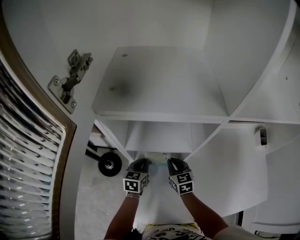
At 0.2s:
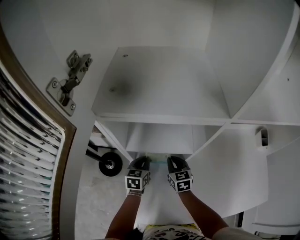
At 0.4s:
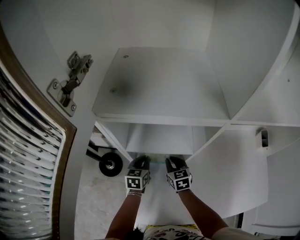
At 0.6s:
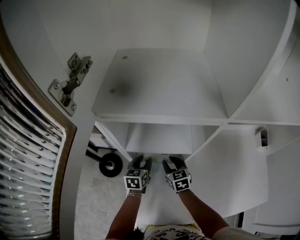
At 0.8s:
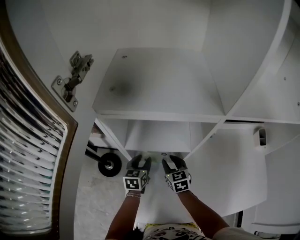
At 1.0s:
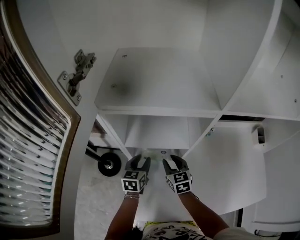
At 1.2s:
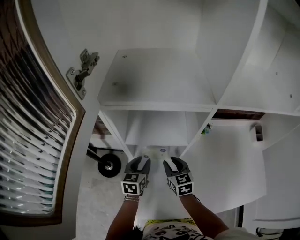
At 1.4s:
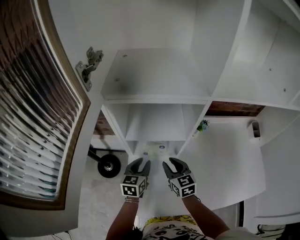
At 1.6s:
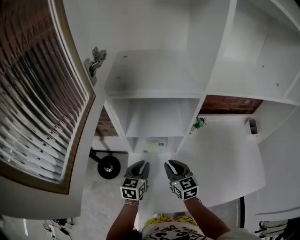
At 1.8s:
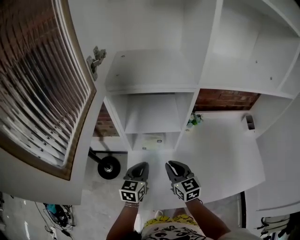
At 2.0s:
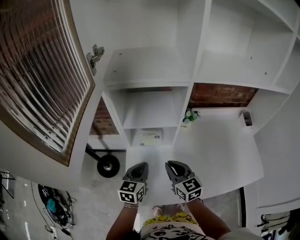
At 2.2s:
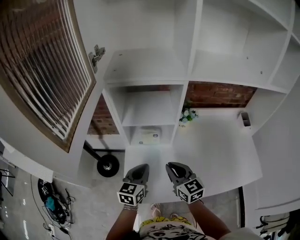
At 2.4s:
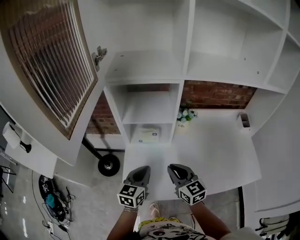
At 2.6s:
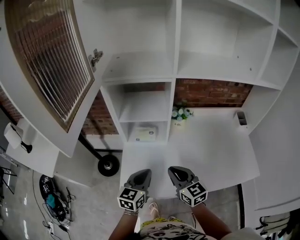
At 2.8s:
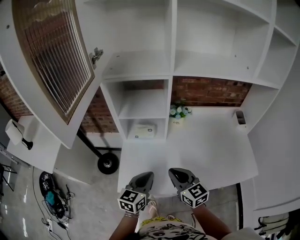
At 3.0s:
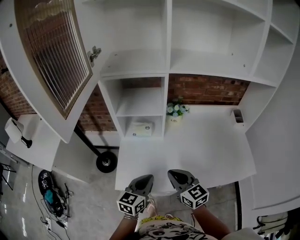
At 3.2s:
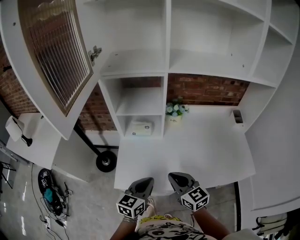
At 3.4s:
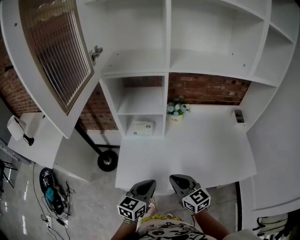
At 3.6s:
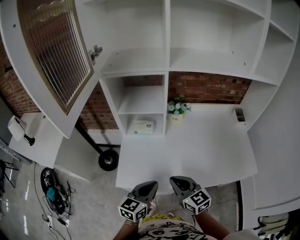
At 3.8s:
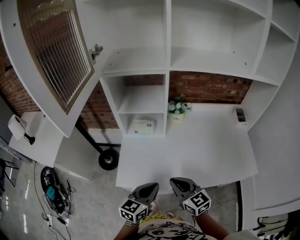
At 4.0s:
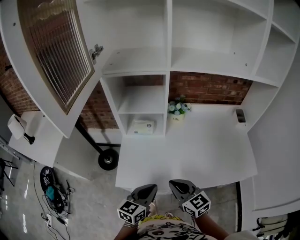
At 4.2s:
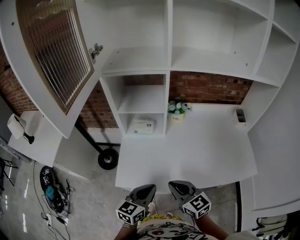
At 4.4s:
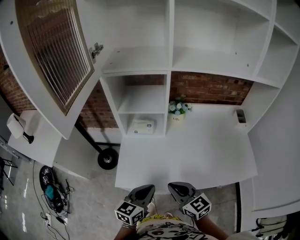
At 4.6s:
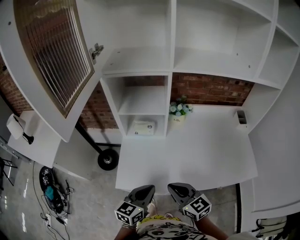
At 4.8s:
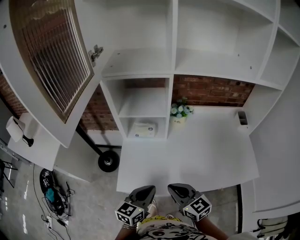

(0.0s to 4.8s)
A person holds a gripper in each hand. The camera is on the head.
0.0s - 1.6s: The two grippers go some 10 cm backward and upward. The left gripper opens and closes again.
1.6s - 3.2s: The right gripper moves backward, approximately 20 cm; the left gripper shifts roughly 25 cm backward and to the right.
3.2s - 4.8s: The grippers move only a little.

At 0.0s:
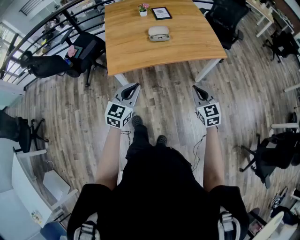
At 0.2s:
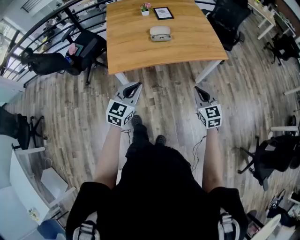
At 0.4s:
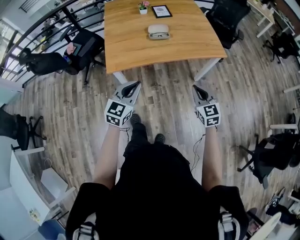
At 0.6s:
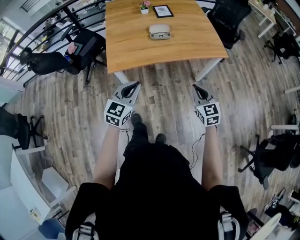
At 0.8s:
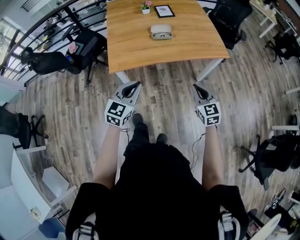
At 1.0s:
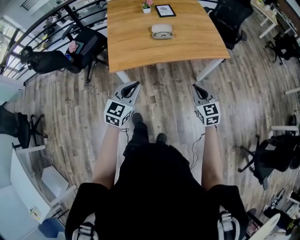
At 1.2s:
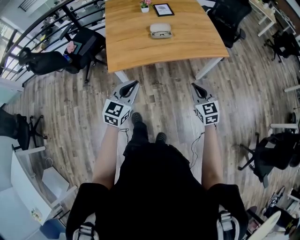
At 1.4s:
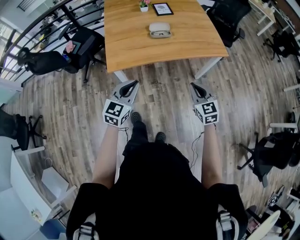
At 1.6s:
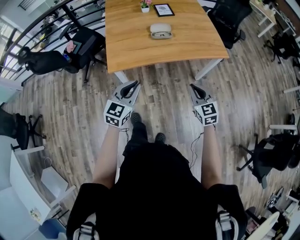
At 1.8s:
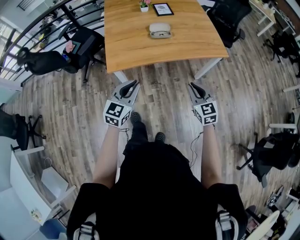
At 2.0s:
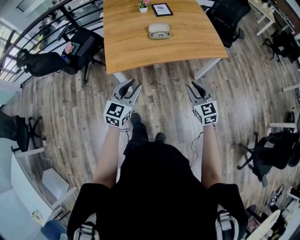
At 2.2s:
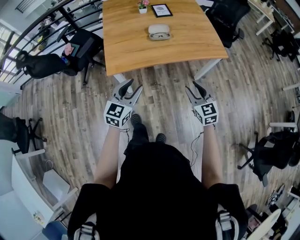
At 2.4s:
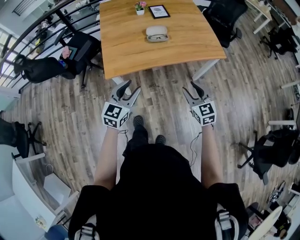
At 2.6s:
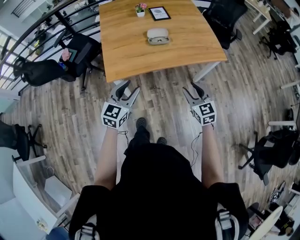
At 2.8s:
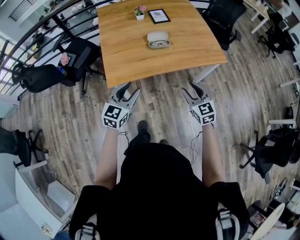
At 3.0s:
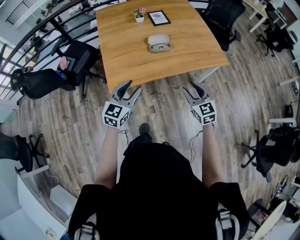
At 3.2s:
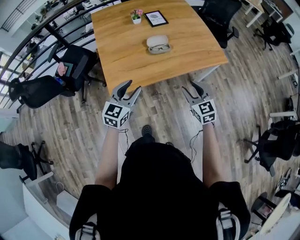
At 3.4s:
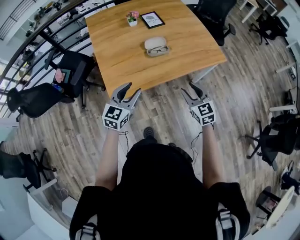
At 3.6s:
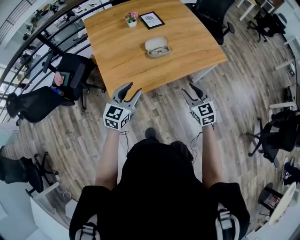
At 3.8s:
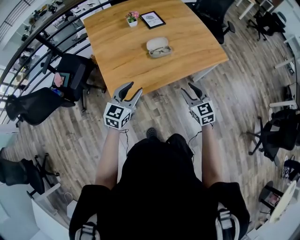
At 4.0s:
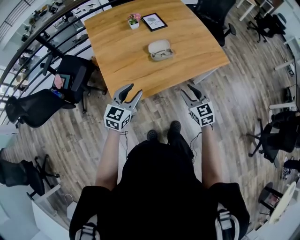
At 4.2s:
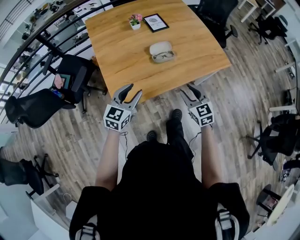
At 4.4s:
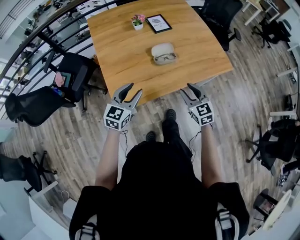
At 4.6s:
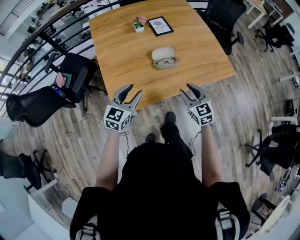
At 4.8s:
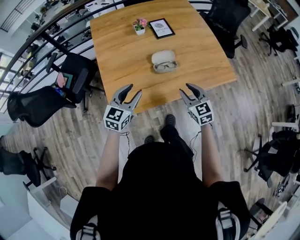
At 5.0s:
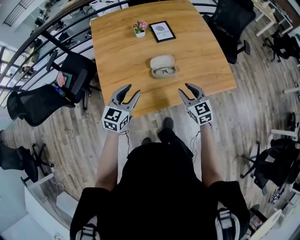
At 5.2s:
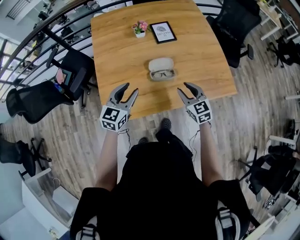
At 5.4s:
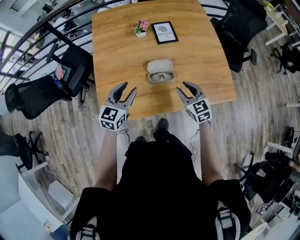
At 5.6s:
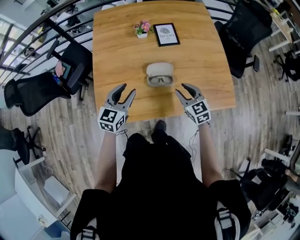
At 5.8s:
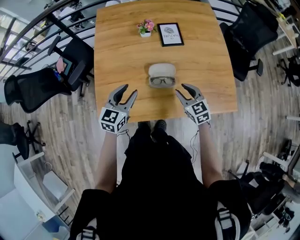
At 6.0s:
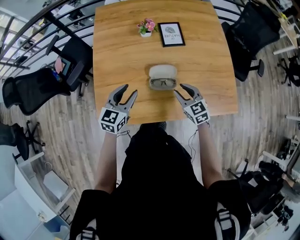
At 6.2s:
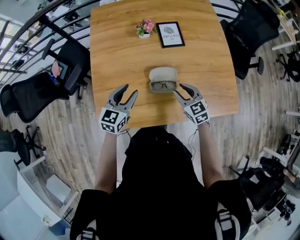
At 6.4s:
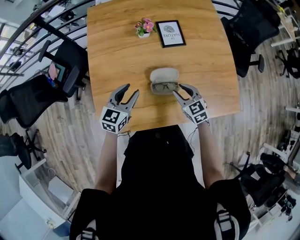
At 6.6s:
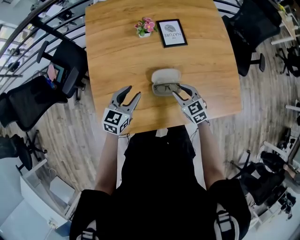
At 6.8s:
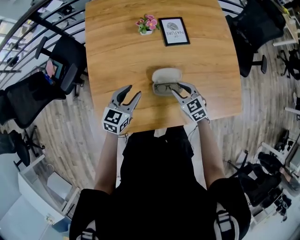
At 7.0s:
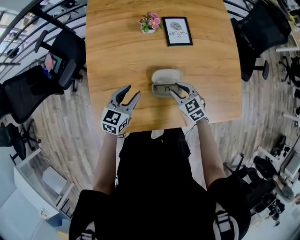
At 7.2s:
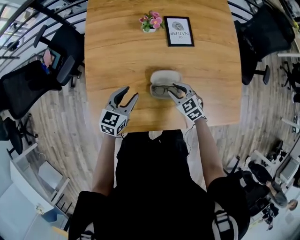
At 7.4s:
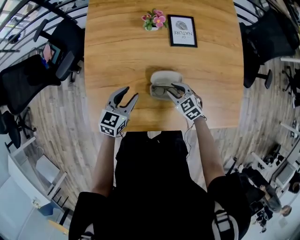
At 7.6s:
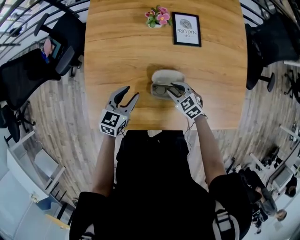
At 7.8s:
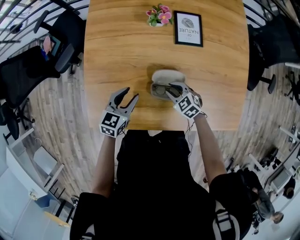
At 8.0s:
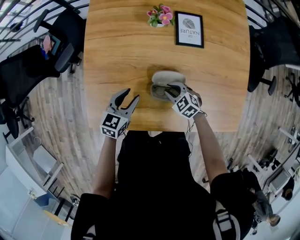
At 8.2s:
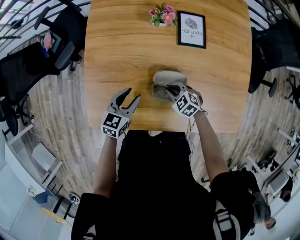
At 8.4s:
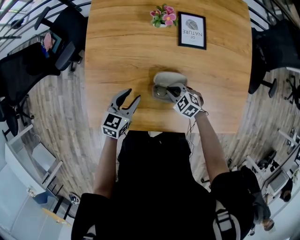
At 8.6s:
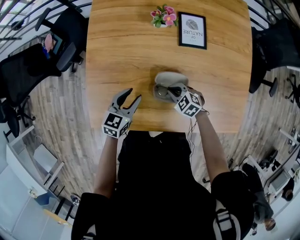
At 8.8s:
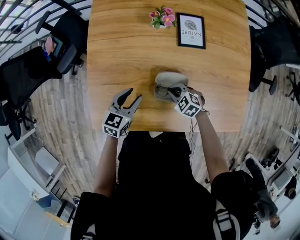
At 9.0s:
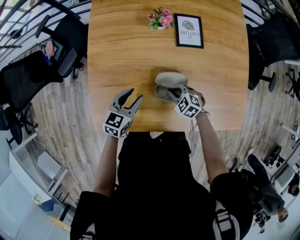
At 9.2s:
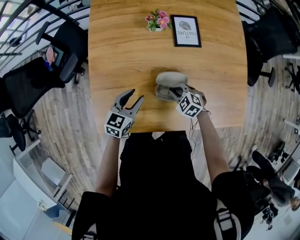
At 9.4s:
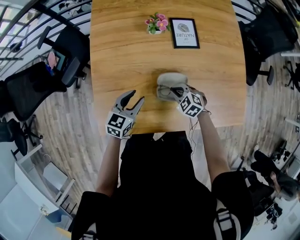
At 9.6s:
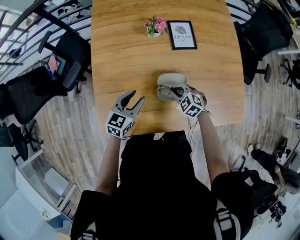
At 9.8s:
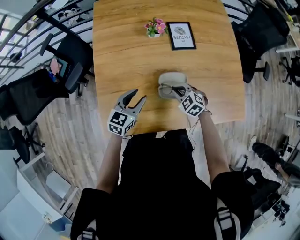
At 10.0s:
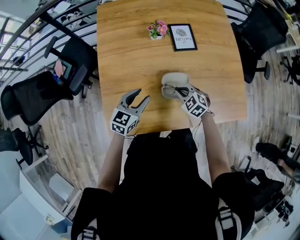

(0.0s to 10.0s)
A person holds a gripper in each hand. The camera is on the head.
0.0s - 1.4s: The grippers make only small movements.
1.4s - 2.8s: The grippers both shift forward by some 5 cm. The left gripper opens up; the right gripper opens up.
2.8s - 4.2s: The two grippers go about 15 cm forward and to the left.
4.2s - 5.8s: Both grippers move forward, approximately 20 cm. The left gripper rotates about 20 degrees, while the right gripper changes its angle by some 20 degrees.
5.8s - 7.2s: Both grippers move downward and forward, some 15 cm.
7.2s - 8.6s: The right gripper moves downward, approximately 5 cm, swivels some 20 degrees, and closes up.
8.6s - 10.0s: Both grippers move upward, some 5 cm.

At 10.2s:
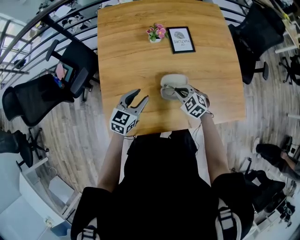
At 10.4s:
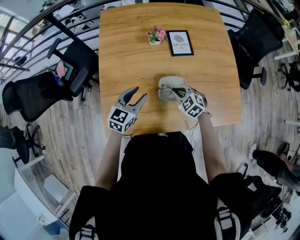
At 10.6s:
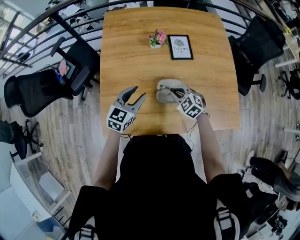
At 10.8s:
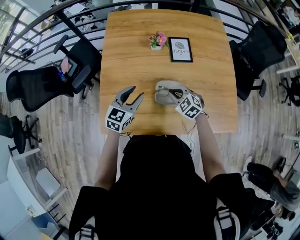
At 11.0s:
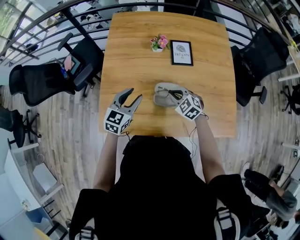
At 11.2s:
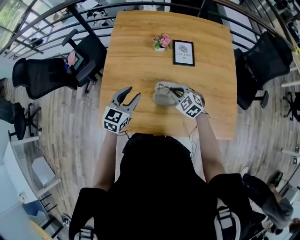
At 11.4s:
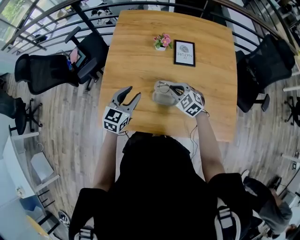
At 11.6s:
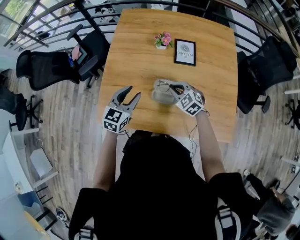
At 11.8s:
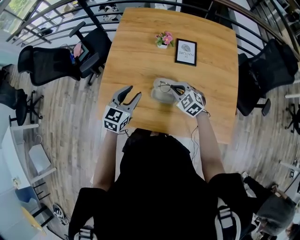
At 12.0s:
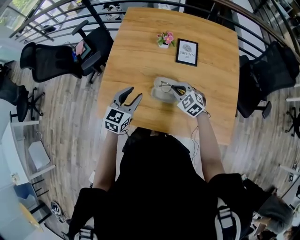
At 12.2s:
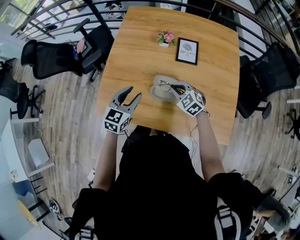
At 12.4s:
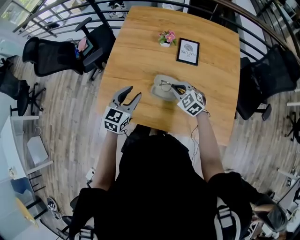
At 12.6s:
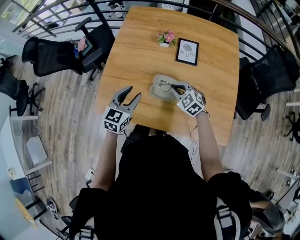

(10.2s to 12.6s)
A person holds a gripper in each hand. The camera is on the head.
10.2s - 11.4s: The grippers both shift upward by approximately 5 cm.
11.4s - 12.6s: The left gripper moves backward, about 5 cm.

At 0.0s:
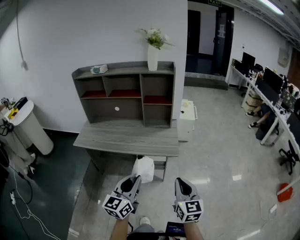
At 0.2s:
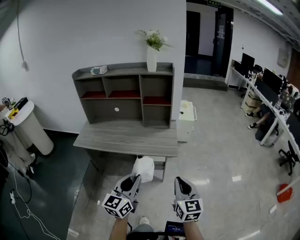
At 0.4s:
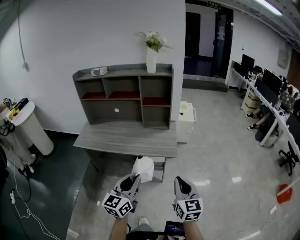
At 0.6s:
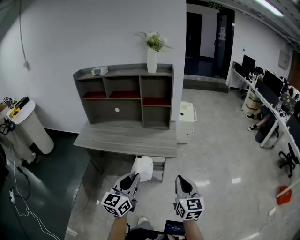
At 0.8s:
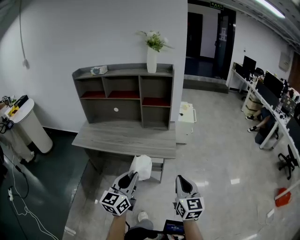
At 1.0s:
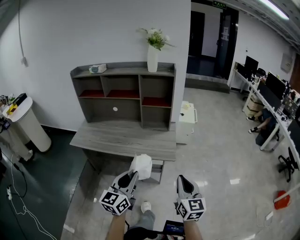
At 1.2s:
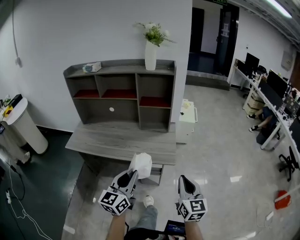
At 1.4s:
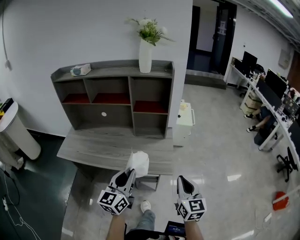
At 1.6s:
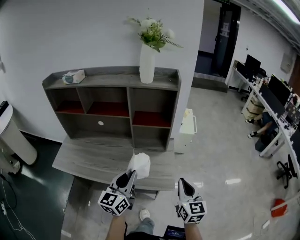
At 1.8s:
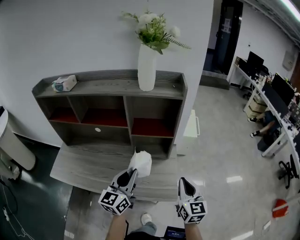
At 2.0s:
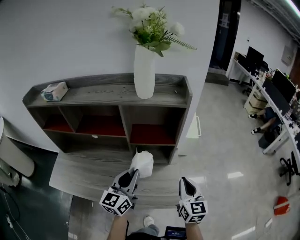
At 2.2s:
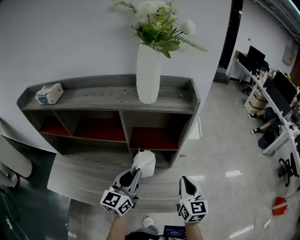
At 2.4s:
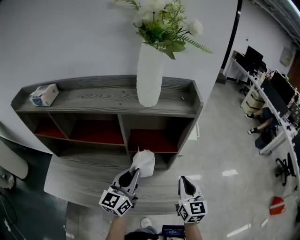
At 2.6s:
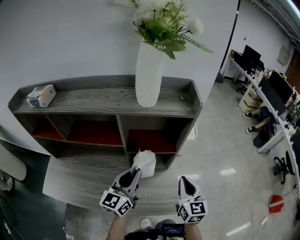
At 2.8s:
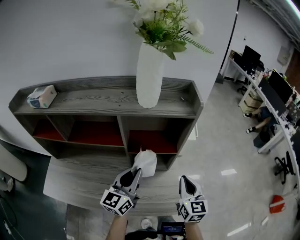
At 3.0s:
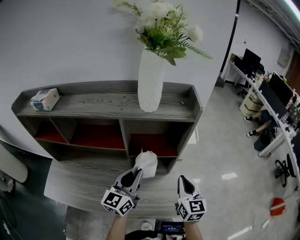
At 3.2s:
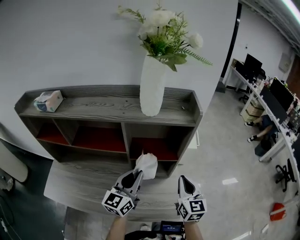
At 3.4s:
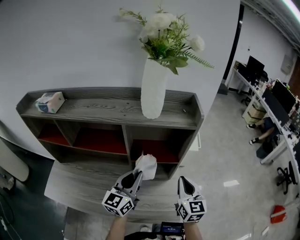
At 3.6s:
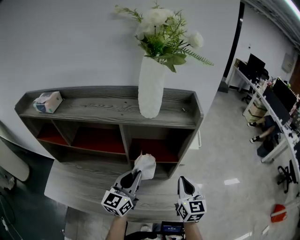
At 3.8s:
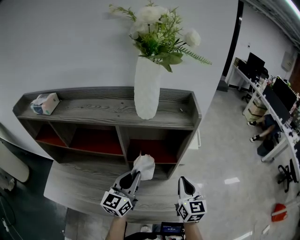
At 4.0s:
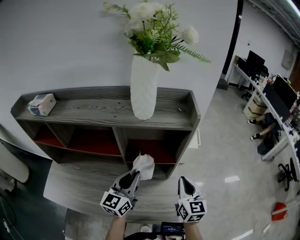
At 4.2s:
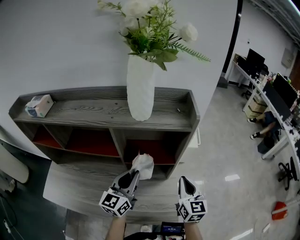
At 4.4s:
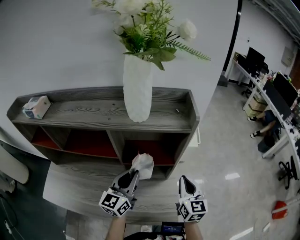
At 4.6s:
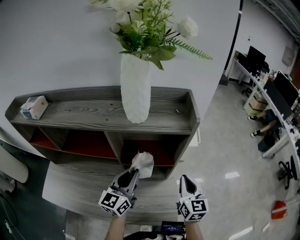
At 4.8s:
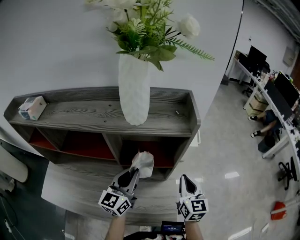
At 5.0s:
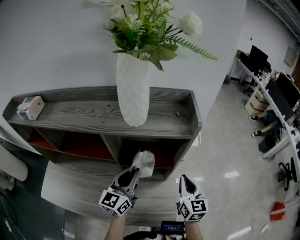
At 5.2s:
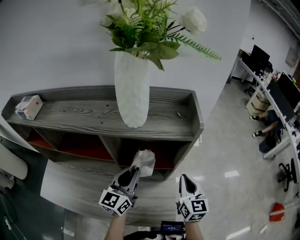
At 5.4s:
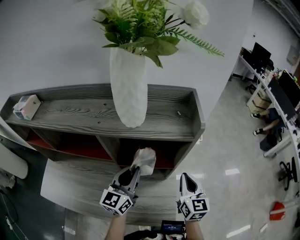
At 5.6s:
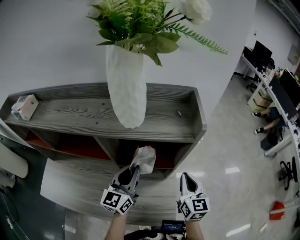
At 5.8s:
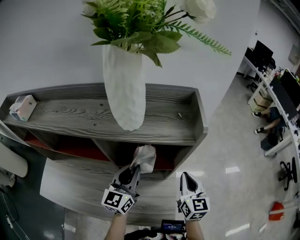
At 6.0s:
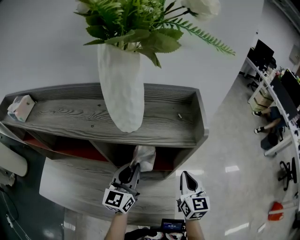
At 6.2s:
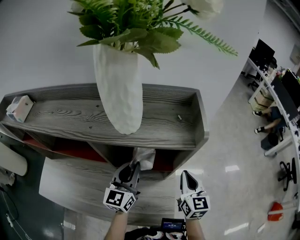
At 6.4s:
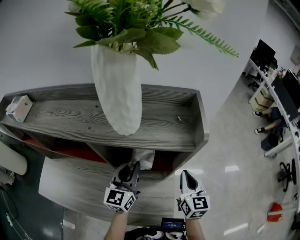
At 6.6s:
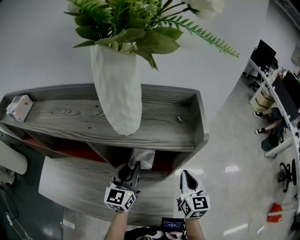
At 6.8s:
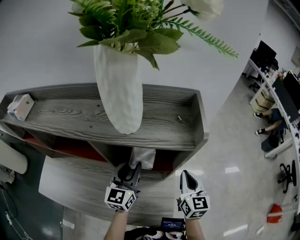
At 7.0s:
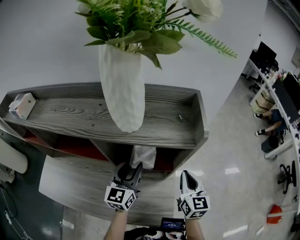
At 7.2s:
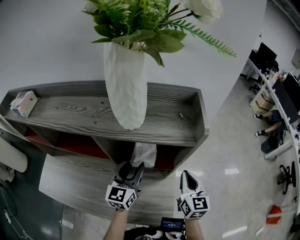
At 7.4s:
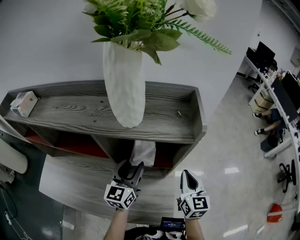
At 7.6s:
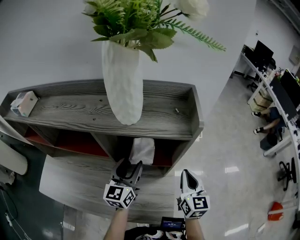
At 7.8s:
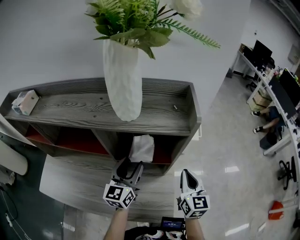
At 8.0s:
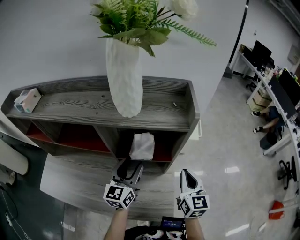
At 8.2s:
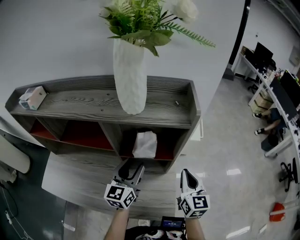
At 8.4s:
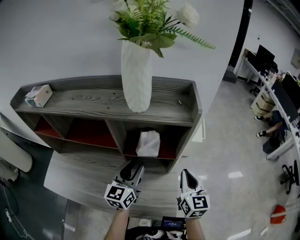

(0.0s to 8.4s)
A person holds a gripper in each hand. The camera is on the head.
0.0s - 1.4s: The grippers both shift forward by about 20 cm.
1.4s - 2.8s: Both grippers travel together forward, approximately 30 cm.
2.8s - 4.2s: The right gripper moves forward, approximately 5 cm.
4.2s - 5.6s: The grippers both shift forward by roughly 5 cm.
5.6s - 7.0s: The left gripper opens.
7.0s - 8.4s: Both grippers move backward, roughly 5 cm.
